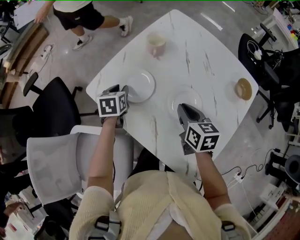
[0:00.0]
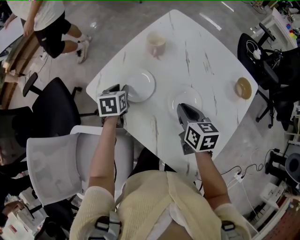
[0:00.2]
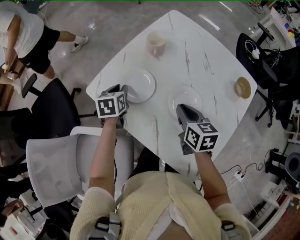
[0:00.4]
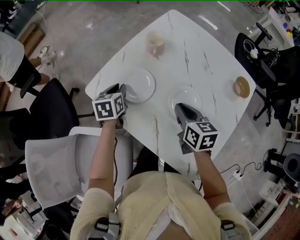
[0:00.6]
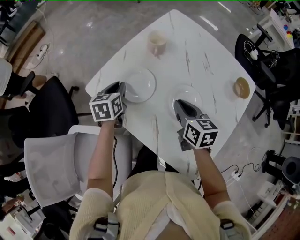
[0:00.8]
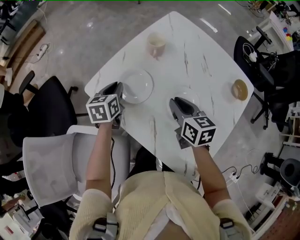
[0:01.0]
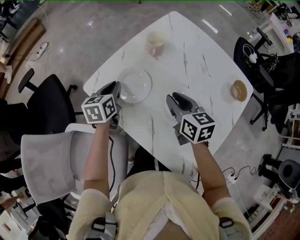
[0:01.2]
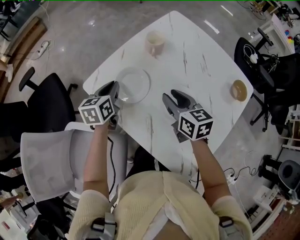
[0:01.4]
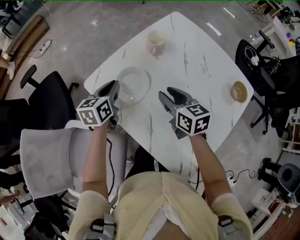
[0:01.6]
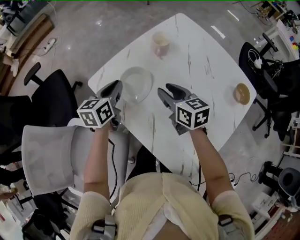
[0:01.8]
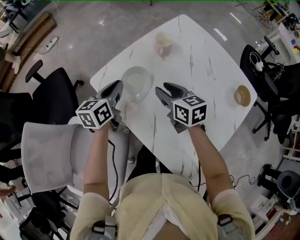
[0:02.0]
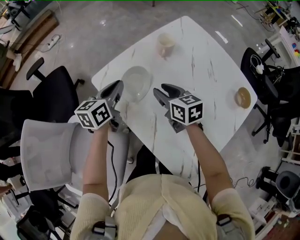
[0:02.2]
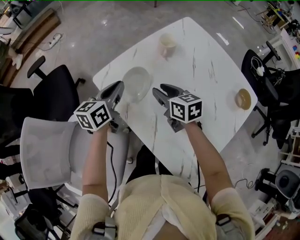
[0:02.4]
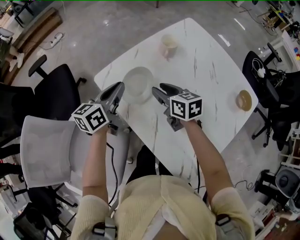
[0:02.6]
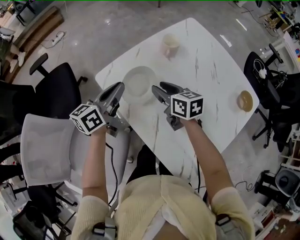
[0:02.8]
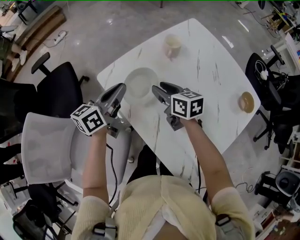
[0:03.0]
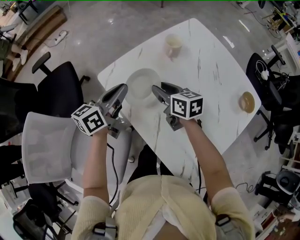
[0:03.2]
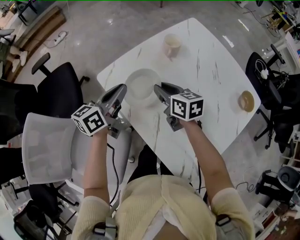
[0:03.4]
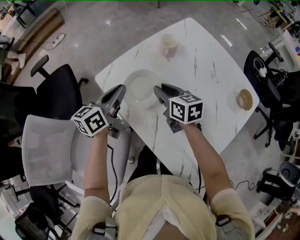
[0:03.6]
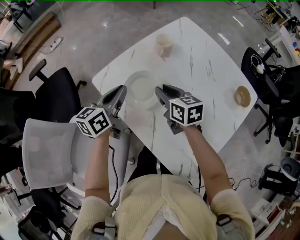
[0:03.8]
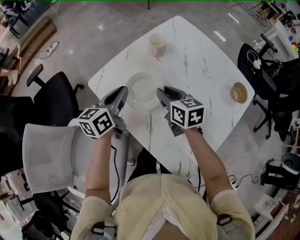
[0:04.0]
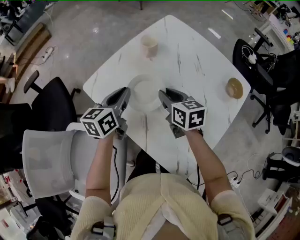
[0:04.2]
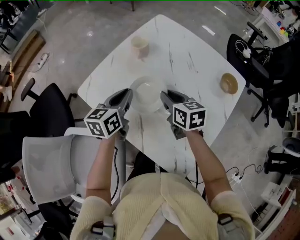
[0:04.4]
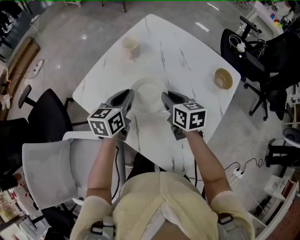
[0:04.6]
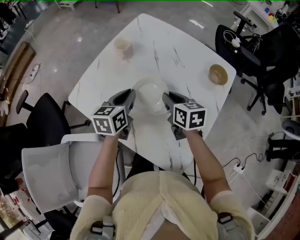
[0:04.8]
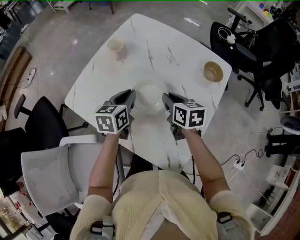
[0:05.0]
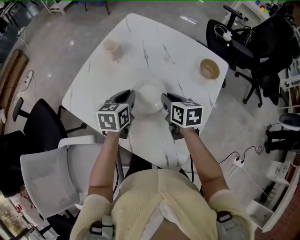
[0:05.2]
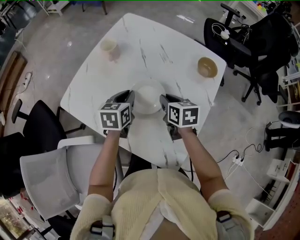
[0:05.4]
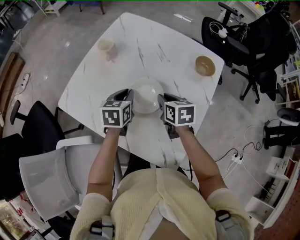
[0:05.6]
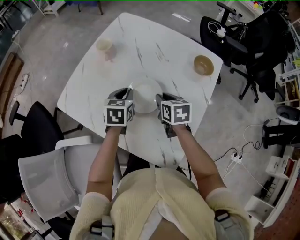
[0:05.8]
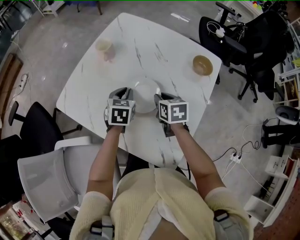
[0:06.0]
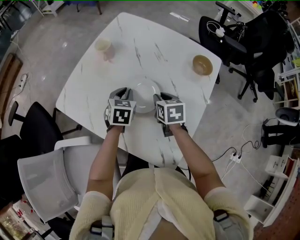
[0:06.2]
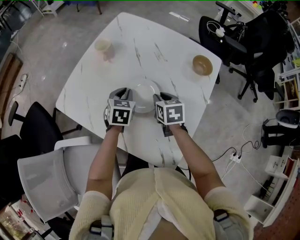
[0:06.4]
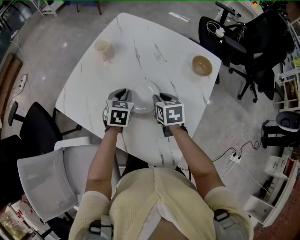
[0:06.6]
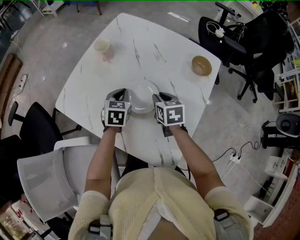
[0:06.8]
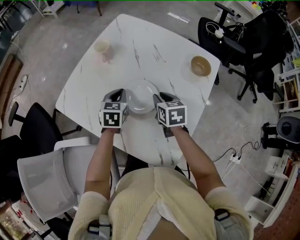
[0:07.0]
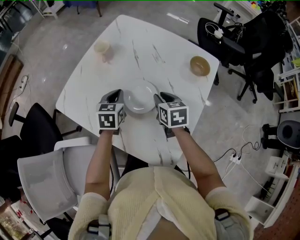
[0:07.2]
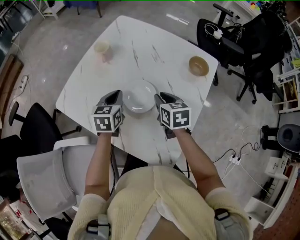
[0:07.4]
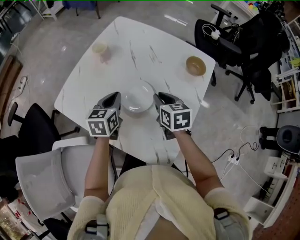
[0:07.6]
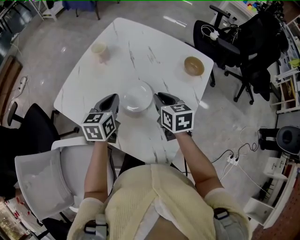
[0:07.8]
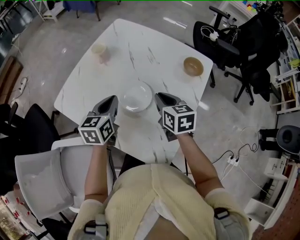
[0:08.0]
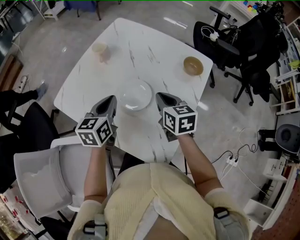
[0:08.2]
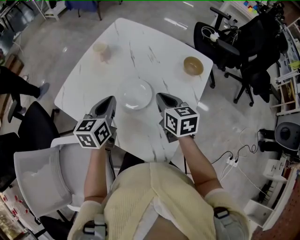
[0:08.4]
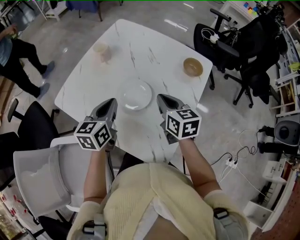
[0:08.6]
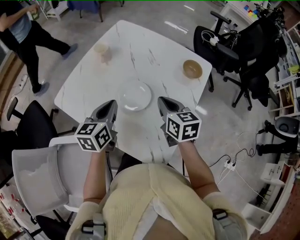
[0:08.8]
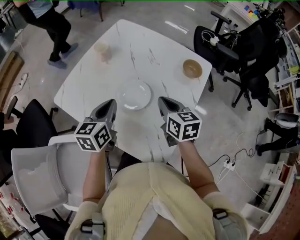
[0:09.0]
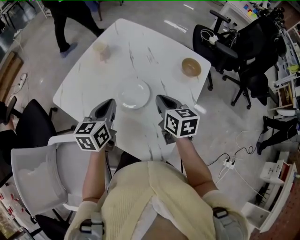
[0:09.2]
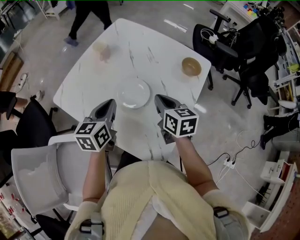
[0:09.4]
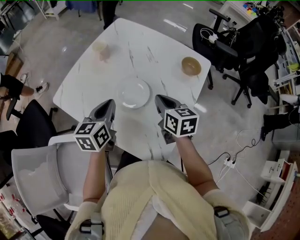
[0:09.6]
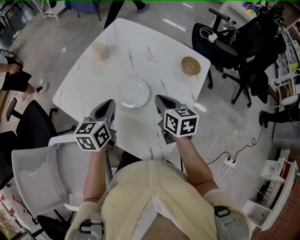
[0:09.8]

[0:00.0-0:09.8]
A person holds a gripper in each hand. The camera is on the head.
0:00.0 to 0:01.4: The left gripper goes approximately 5 cm upward, and closes up. Meanwhile the right gripper shifts by about 5 cm, and opens its fingers.
0:01.4 to 0:02.8: The right gripper travels to the left by some 10 cm. Meanwhile the left gripper shifts some 10 cm upward, and turns by some 30 degrees.
0:02.8 to 0:04.2: The two grippers go roughly 10 cm to the right.
0:04.2 to 0:05.6: The right gripper heads to the right, covering about 15 cm, and changes its angle by approximately 20 degrees. The left gripper heads to the right and downward, covering some 15 cm, and swivels roughly 30 degrees.
0:05.6 to 0:07.0: The grippers stay close to where they were, moving slightly.
0:07.0 to 0:08.4: The left gripper moves upward and backward, some 15 cm, and changes its angle by roughly 20 degrees, while the right gripper goes approximately 10 cm upward, and closes up.
0:08.4 to 0:09.8: The grippers make only small movements.

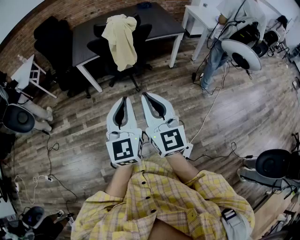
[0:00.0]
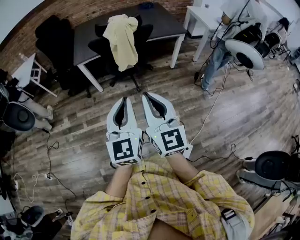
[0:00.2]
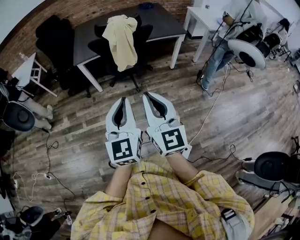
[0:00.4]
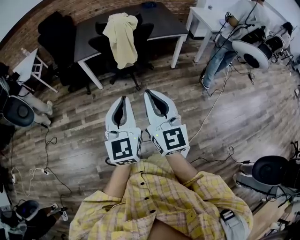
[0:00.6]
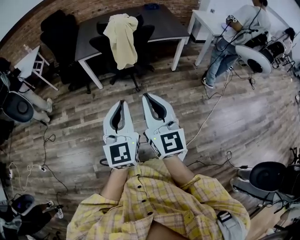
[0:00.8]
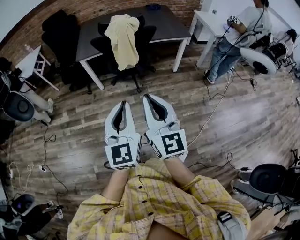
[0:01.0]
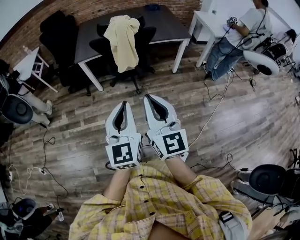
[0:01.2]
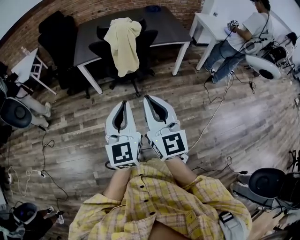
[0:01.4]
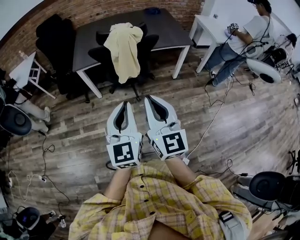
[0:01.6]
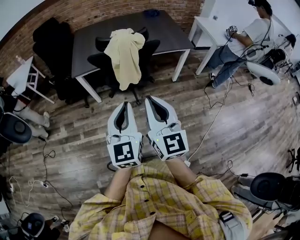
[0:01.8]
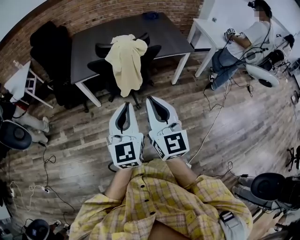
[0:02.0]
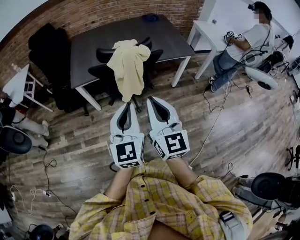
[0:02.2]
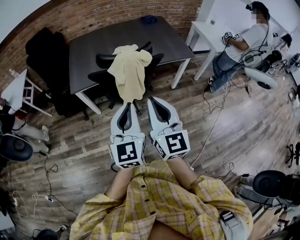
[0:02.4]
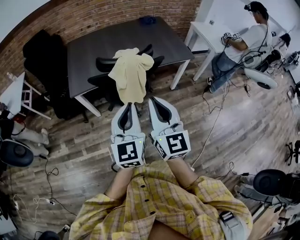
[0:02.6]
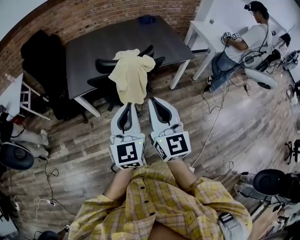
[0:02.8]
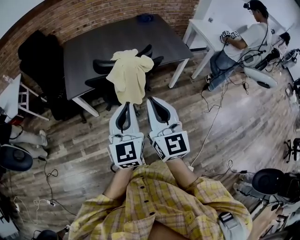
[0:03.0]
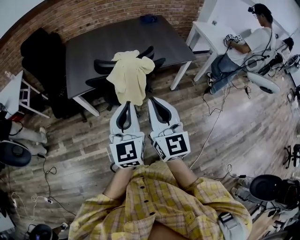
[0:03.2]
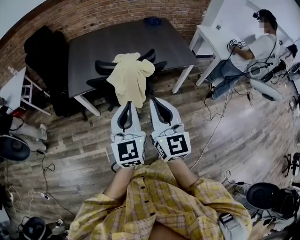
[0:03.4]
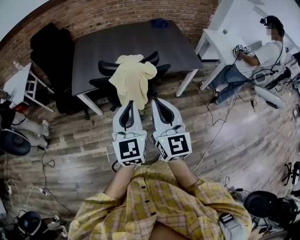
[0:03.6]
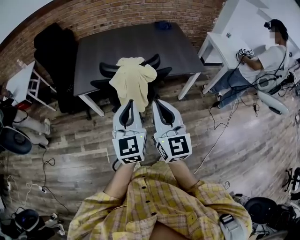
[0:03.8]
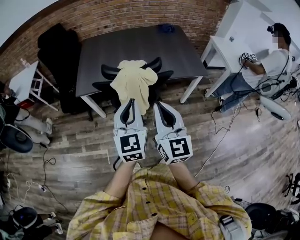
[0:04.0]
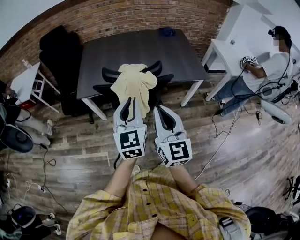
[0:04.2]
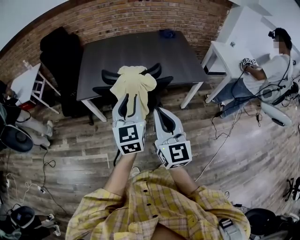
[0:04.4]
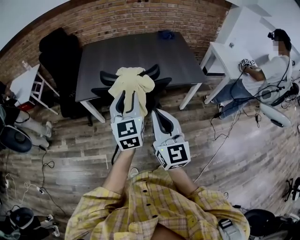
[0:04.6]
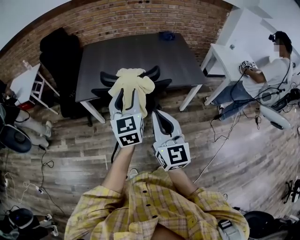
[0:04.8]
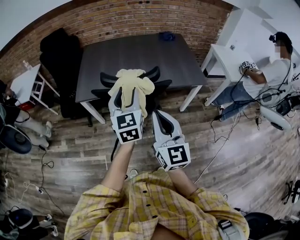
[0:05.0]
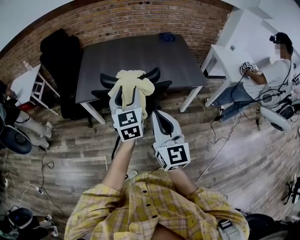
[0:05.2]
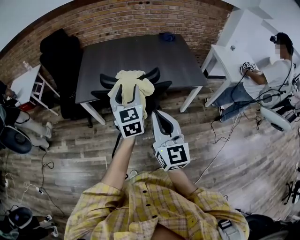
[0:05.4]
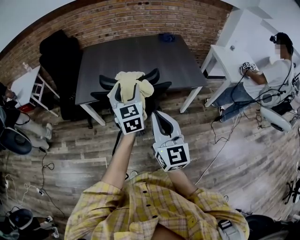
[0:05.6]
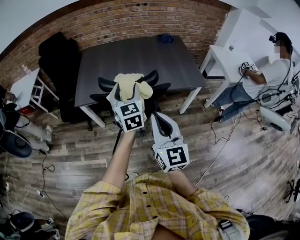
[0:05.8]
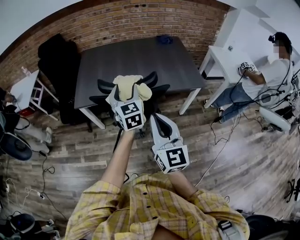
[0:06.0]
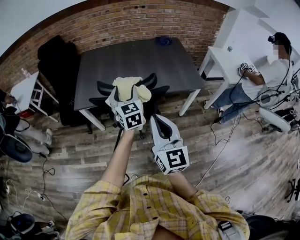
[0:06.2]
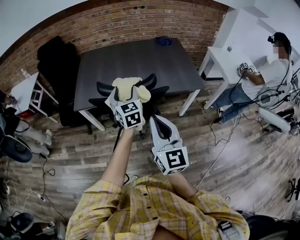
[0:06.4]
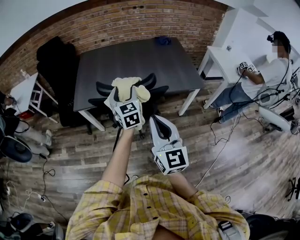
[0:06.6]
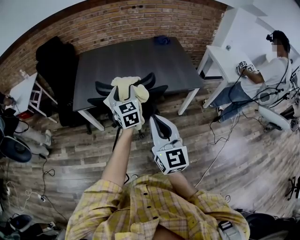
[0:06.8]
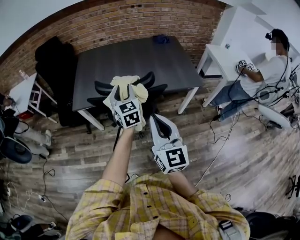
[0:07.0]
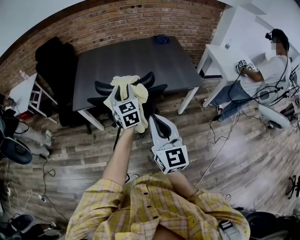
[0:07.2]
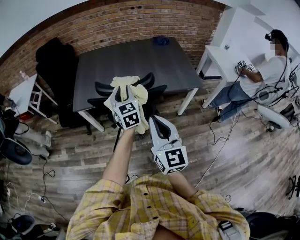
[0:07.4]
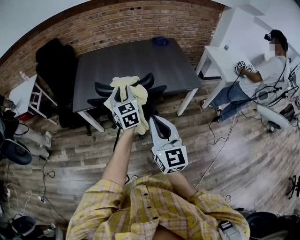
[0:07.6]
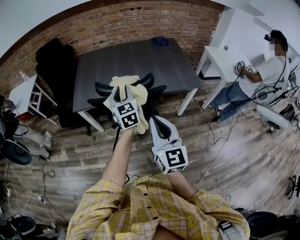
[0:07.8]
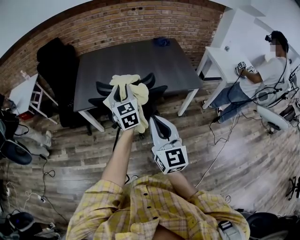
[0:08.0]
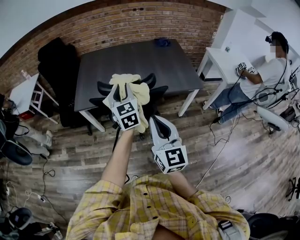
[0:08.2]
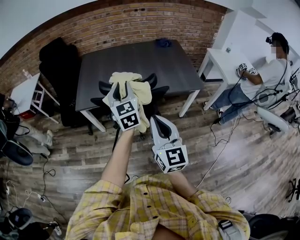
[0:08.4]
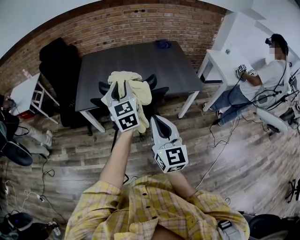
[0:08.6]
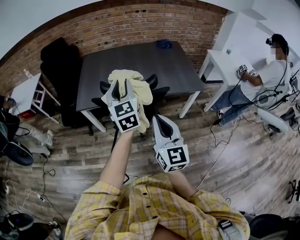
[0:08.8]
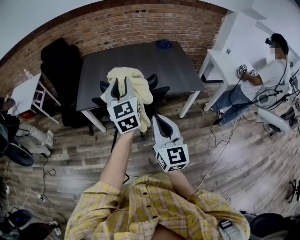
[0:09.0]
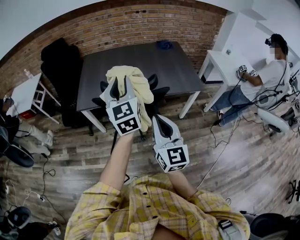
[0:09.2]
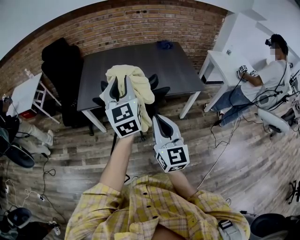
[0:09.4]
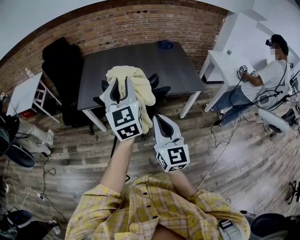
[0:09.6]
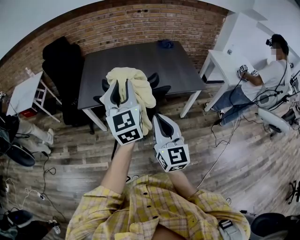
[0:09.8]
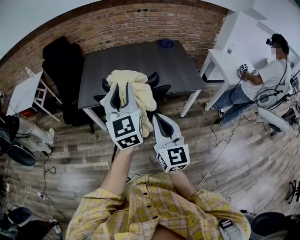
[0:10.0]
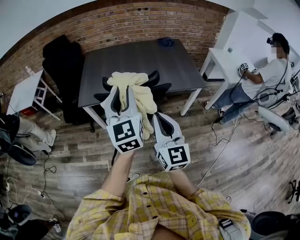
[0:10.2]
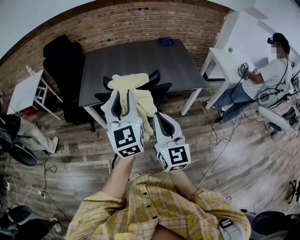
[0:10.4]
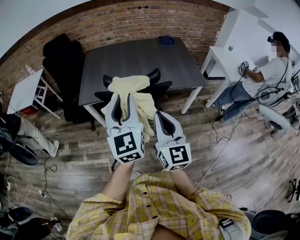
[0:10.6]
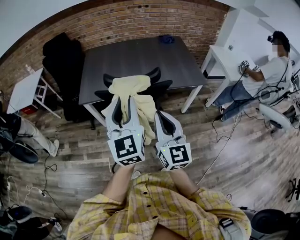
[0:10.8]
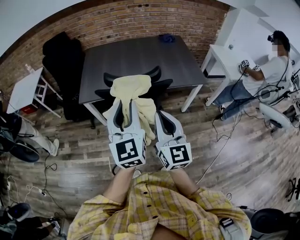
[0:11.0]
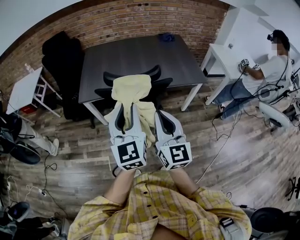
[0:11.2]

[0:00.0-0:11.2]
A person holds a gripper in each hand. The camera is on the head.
0:00.0 to 0:01.6: The two grippers go approximately 10 cm forward.
0:01.6 to 0:03.2: The two grippers go roughly 25 cm forward.
0:03.2 to 0:04.8: The left gripper shifts about 10 cm forward and to the right, and opens its fingers, while the right gripper moves to the right, about 5 cm.
0:04.8 to 0:06.4: The left gripper shifts about 10 cm forward and downward, and opens its fingers.
0:06.4 to 0:08.0: The left gripper closes its fingers.
0:08.0 to 0:09.6: The left gripper is displaced upward and backward by approximately 15 cm.
0:09.6 to 0:11.2: The left gripper is displaced backward and downward by approximately 10 cm.

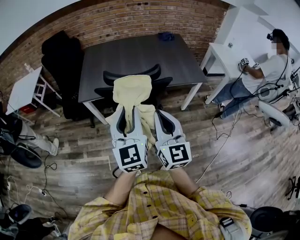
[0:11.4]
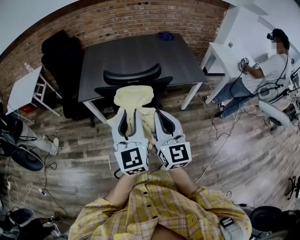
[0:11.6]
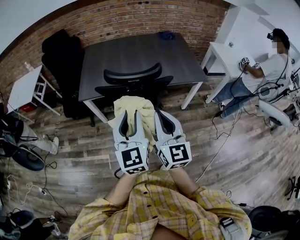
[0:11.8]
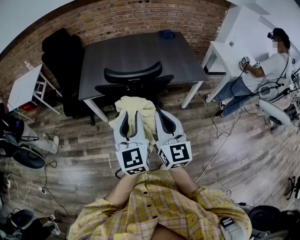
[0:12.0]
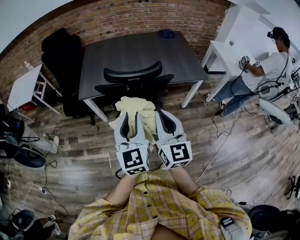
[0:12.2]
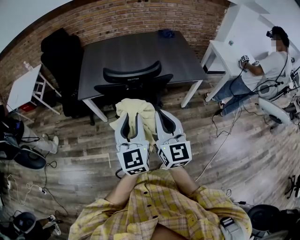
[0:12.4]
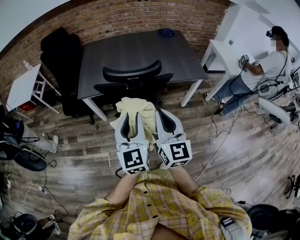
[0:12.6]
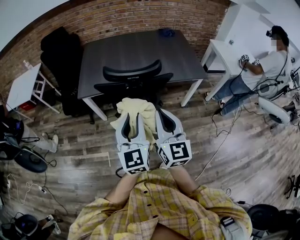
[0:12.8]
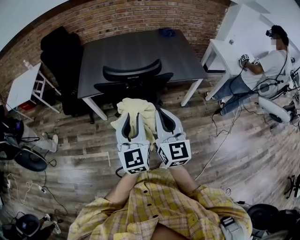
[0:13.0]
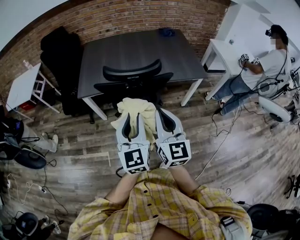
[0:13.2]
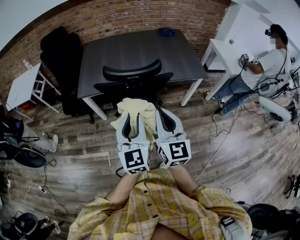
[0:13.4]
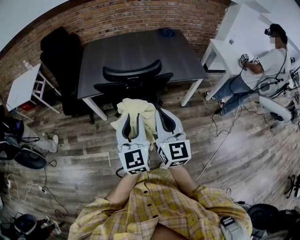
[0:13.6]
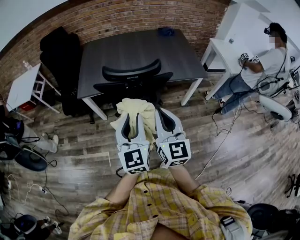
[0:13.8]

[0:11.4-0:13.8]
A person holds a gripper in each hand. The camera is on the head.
0:11.4 to 0:12.6: The grippers make only small movements.
0:12.6 to 0:13.8: Neither gripper changes place.
